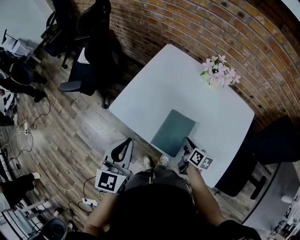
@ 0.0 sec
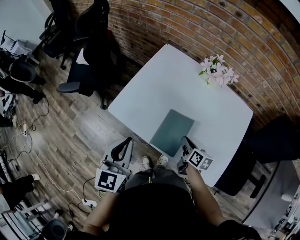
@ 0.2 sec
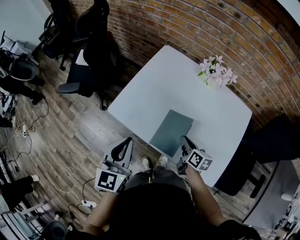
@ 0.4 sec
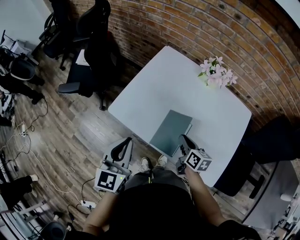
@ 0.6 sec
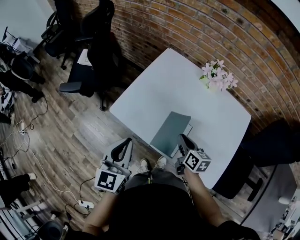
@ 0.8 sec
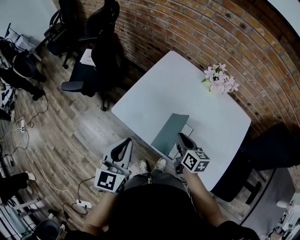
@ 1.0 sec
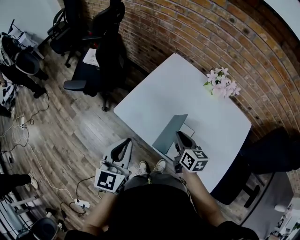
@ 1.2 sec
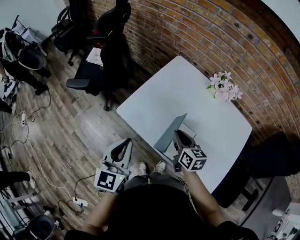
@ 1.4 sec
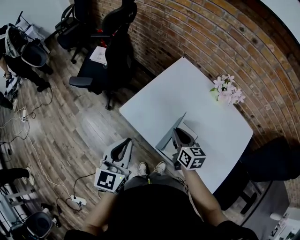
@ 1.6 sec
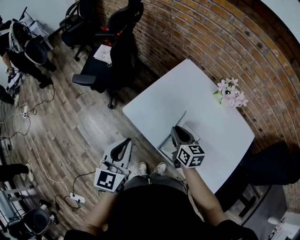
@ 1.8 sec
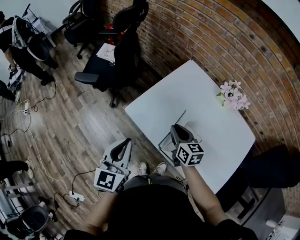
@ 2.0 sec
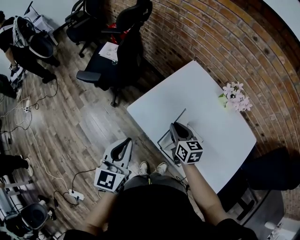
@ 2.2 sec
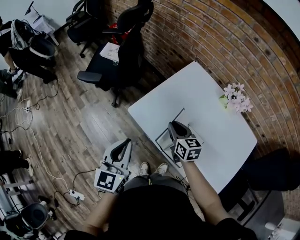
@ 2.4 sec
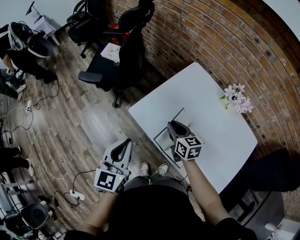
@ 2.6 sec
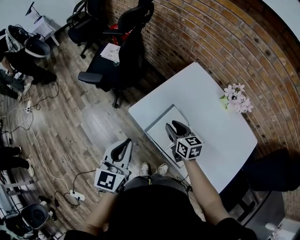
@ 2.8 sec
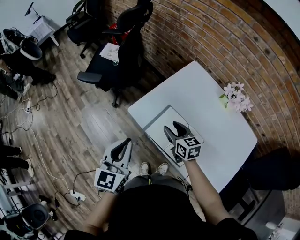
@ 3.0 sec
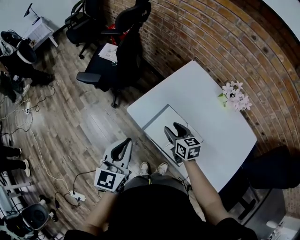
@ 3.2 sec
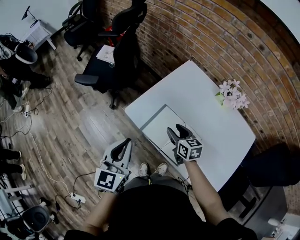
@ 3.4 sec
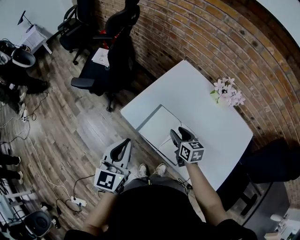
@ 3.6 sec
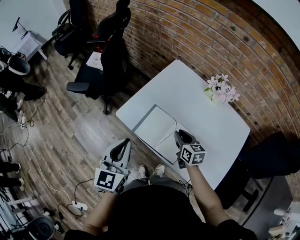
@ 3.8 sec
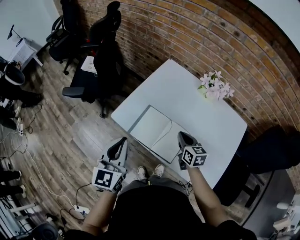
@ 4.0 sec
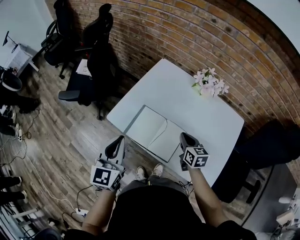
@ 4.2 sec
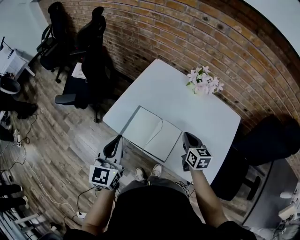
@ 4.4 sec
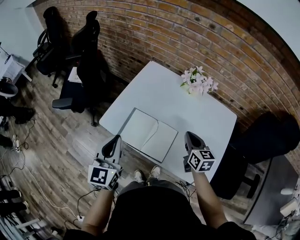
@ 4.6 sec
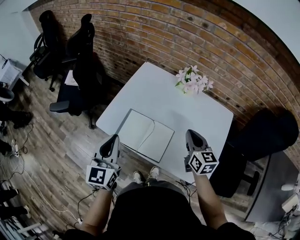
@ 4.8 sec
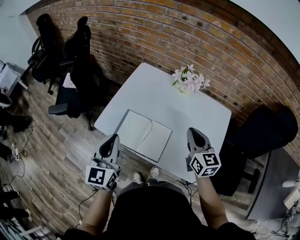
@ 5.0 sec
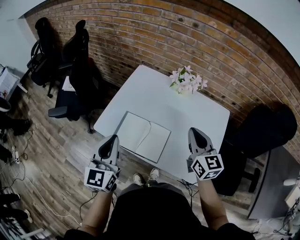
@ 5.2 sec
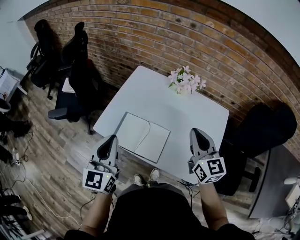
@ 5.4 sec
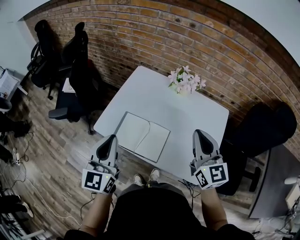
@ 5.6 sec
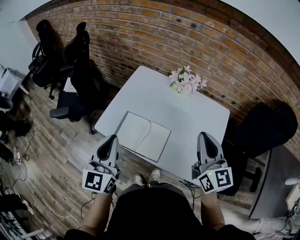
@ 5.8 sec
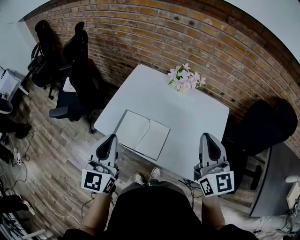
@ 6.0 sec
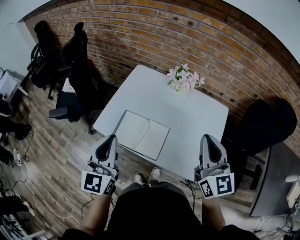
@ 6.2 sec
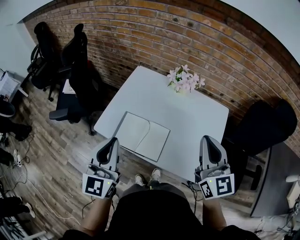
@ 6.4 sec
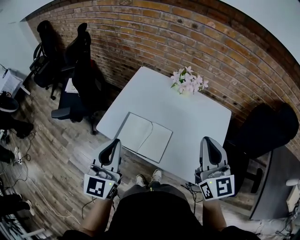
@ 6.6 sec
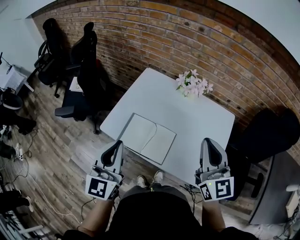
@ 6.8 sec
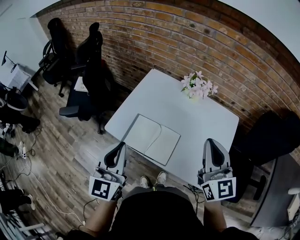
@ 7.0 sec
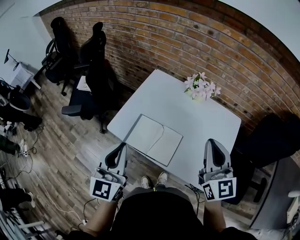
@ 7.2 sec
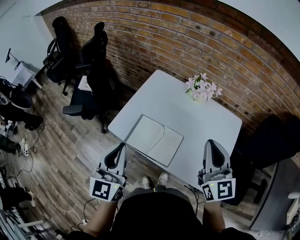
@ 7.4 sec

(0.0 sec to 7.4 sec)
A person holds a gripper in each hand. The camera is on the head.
0.0 sec - 1.4 sec: The right gripper shifts about 15 cm upward, to the left and forward, and changes its angle by some 30 degrees.
1.4 sec - 3.0 sec: The right gripper shifts some 10 cm to the left and forward, rotates about 20 degrees, and opens; the left gripper shifts approximately 5 cm to the left.
3.0 sec - 4.4 sec: The left gripper goes approximately 10 cm to the right. The right gripper moves to the right, some 20 cm, rotates roughly 30 degrees, and closes.
4.4 sec - 6.0 sec: The right gripper goes some 25 cm upward, and tilts its fingers some 30 degrees upward. Meanwhile the left gripper is displaced upward and to the right by some 10 cm.
6.0 sec - 7.4 sec: There are only small adjustments of the grippers.

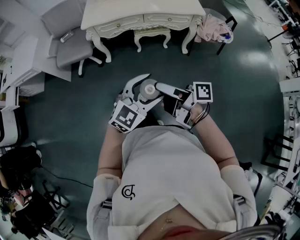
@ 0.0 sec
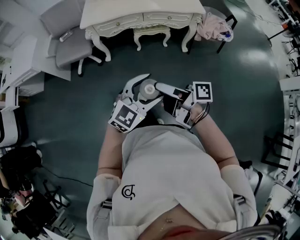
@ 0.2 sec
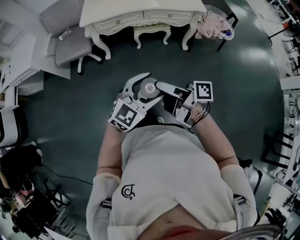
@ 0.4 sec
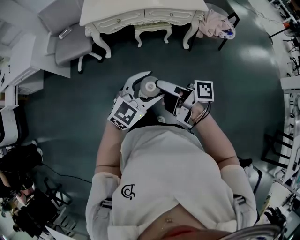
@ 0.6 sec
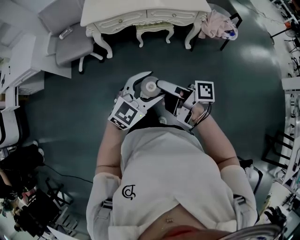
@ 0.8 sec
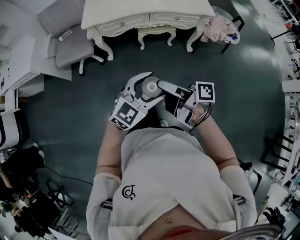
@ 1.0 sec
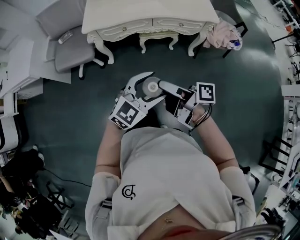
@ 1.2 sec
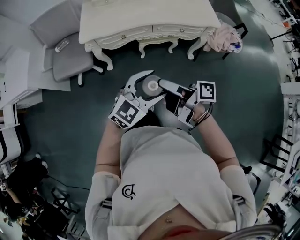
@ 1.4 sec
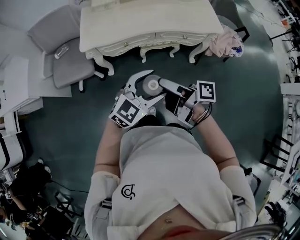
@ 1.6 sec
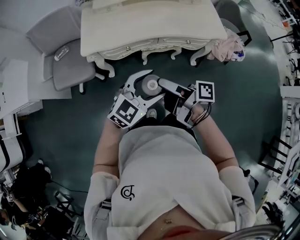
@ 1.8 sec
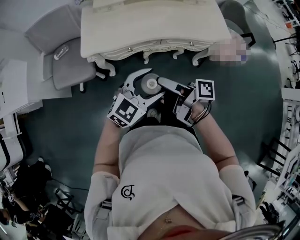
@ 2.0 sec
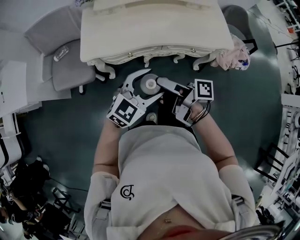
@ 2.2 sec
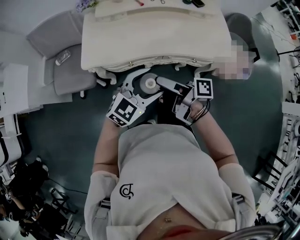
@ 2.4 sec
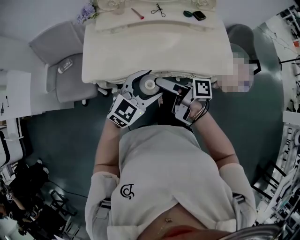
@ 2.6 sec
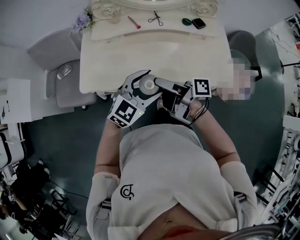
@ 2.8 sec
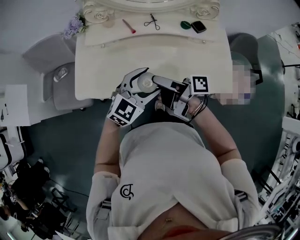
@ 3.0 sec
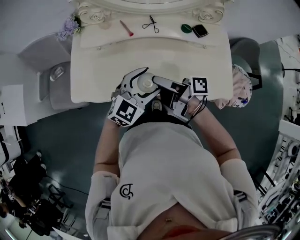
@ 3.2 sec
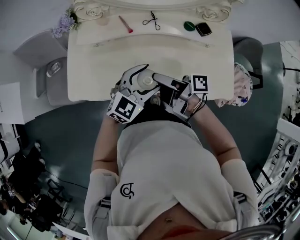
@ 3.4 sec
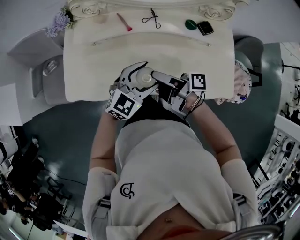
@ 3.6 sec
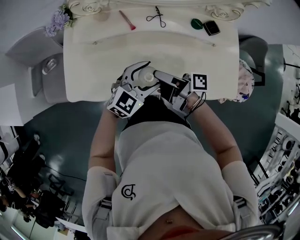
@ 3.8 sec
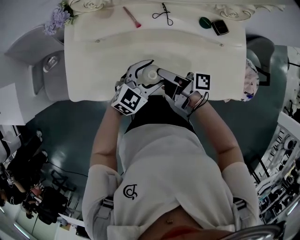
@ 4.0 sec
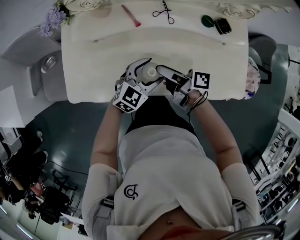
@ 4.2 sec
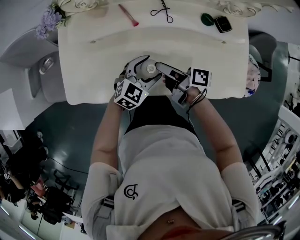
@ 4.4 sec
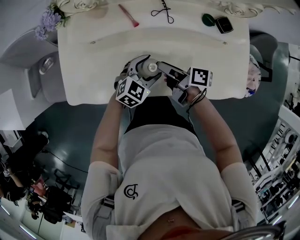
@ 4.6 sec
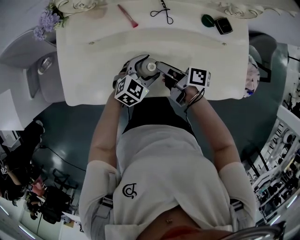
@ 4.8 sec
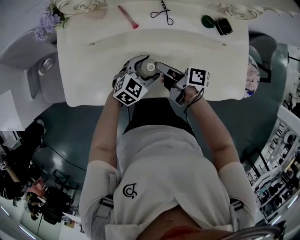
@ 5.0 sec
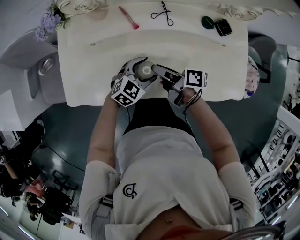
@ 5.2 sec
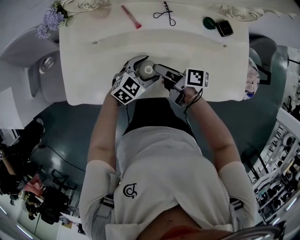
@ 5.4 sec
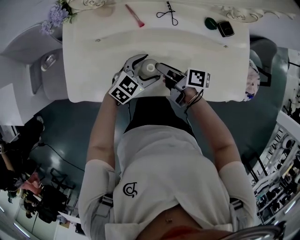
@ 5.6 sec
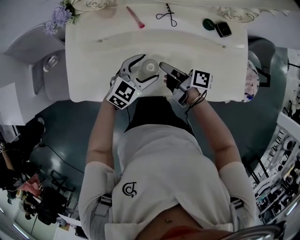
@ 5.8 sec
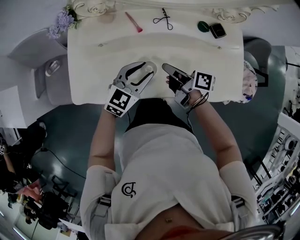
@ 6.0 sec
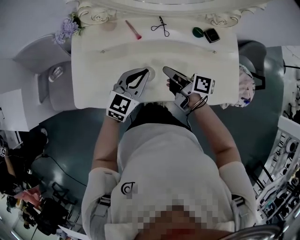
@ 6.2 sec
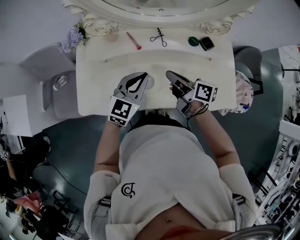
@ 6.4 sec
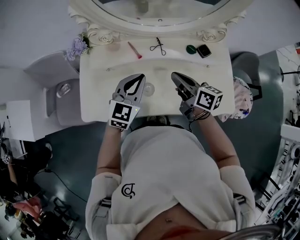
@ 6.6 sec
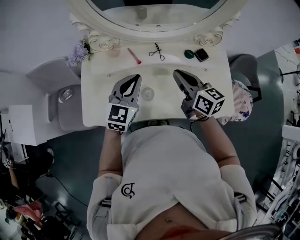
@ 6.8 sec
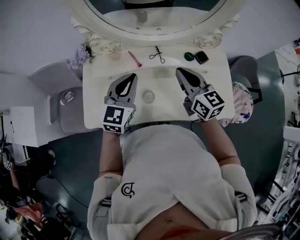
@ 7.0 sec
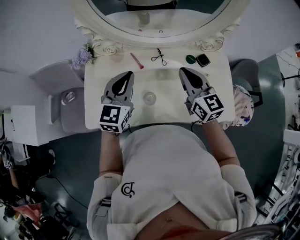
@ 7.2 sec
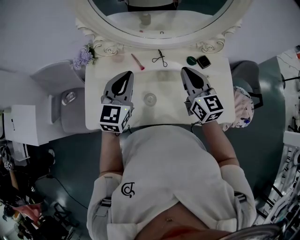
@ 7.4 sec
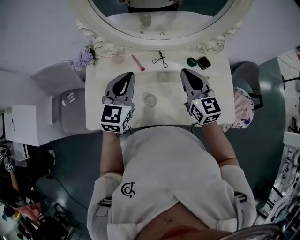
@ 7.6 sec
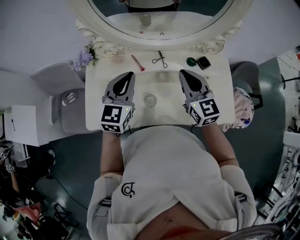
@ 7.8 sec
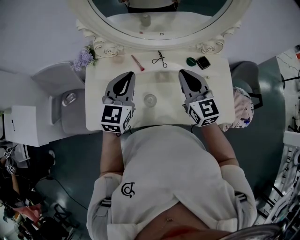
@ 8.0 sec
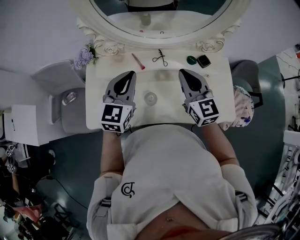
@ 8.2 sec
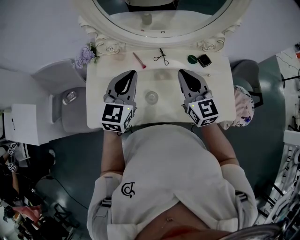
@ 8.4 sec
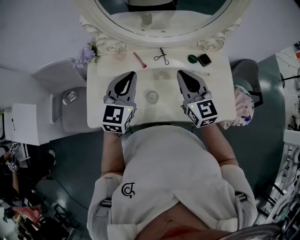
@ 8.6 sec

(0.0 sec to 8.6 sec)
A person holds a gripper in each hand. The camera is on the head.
0.0 sec - 1.4 sec: The left gripper moves some 20 cm.
1.4 sec - 2.8 sec: The left gripper shifts by roughly 40 cm.
2.8 sec - 4.4 sec: The left gripper travels downward by about 20 cm.
5.8 sec - 7.2 sec: The left gripper goes roughly 25 cm upward, turns by about 30 degrees, and closes its fingers.

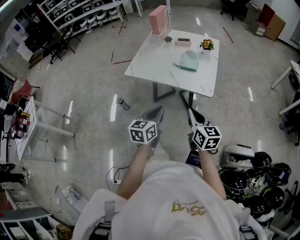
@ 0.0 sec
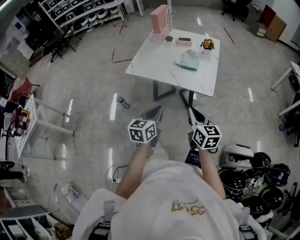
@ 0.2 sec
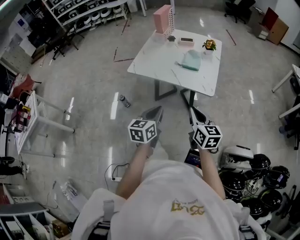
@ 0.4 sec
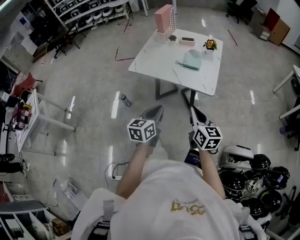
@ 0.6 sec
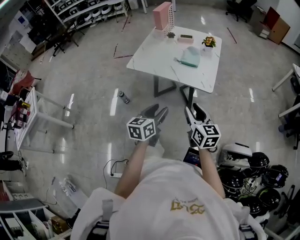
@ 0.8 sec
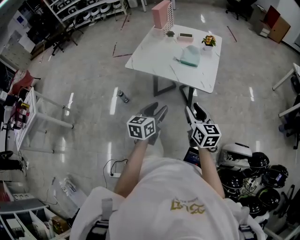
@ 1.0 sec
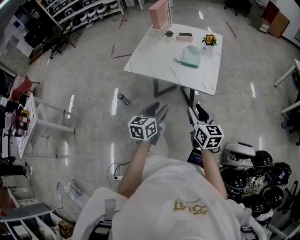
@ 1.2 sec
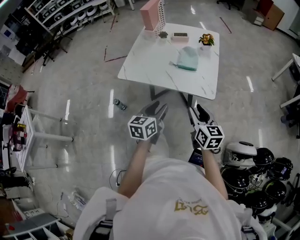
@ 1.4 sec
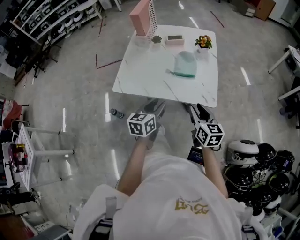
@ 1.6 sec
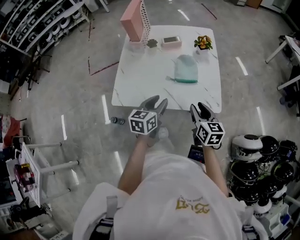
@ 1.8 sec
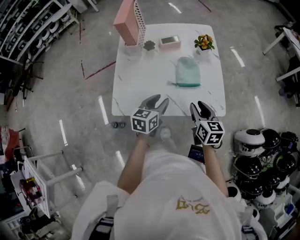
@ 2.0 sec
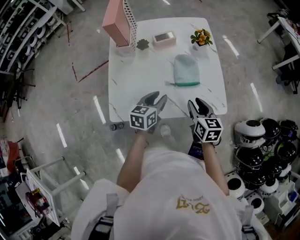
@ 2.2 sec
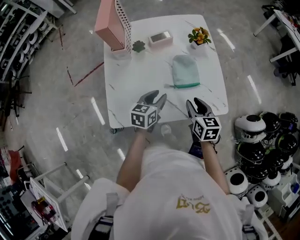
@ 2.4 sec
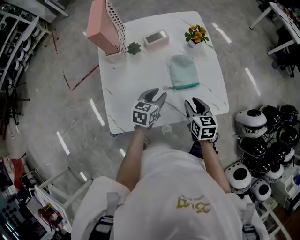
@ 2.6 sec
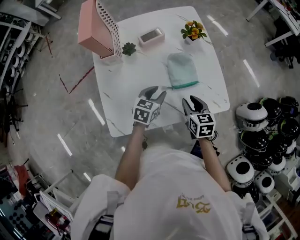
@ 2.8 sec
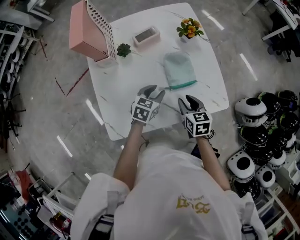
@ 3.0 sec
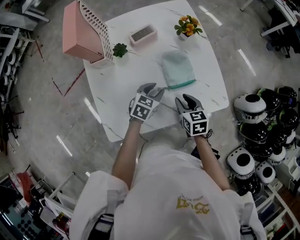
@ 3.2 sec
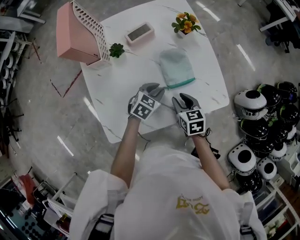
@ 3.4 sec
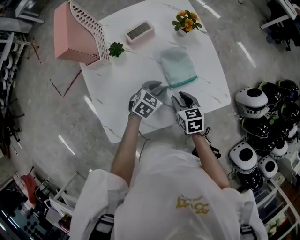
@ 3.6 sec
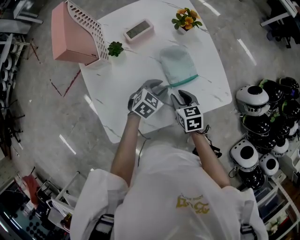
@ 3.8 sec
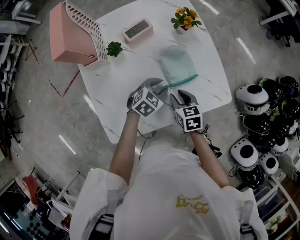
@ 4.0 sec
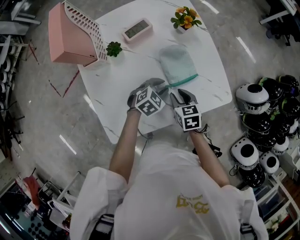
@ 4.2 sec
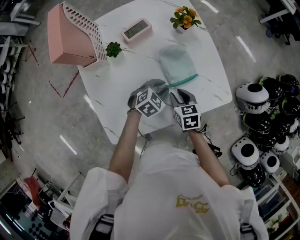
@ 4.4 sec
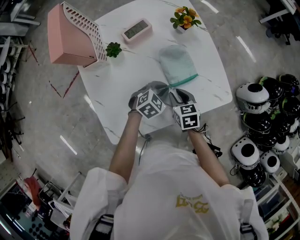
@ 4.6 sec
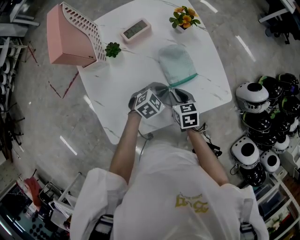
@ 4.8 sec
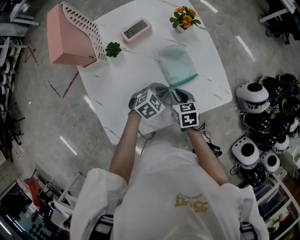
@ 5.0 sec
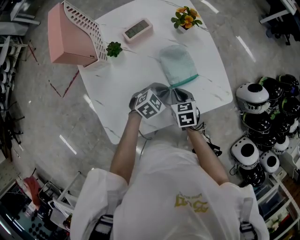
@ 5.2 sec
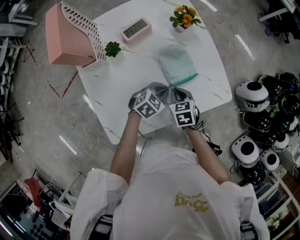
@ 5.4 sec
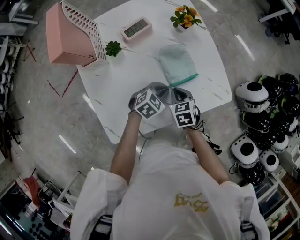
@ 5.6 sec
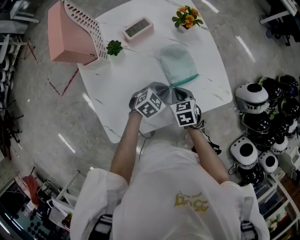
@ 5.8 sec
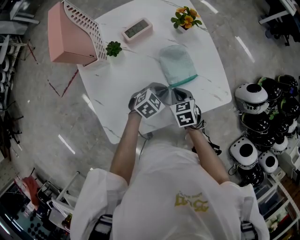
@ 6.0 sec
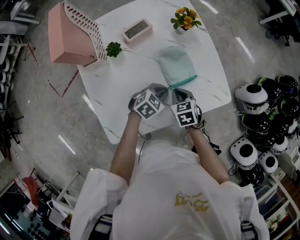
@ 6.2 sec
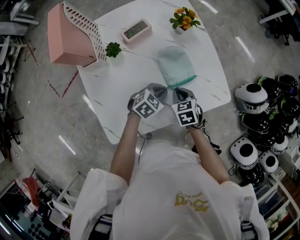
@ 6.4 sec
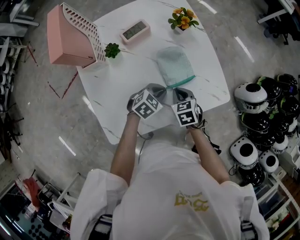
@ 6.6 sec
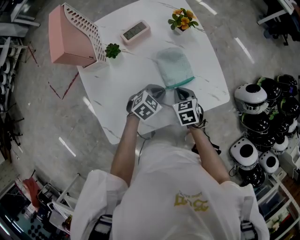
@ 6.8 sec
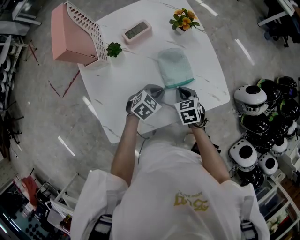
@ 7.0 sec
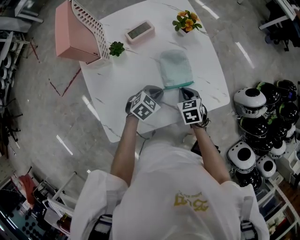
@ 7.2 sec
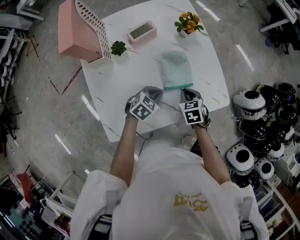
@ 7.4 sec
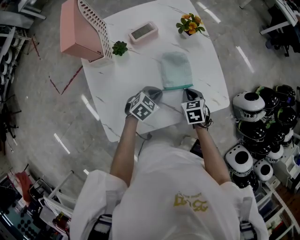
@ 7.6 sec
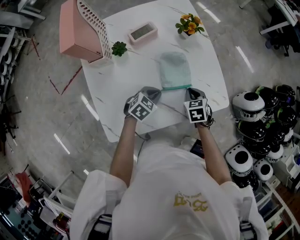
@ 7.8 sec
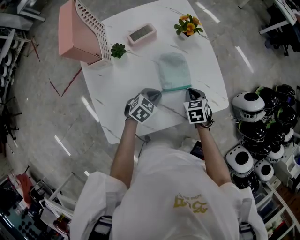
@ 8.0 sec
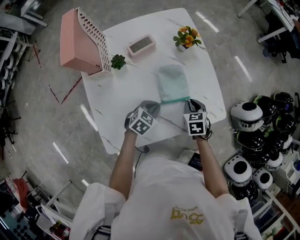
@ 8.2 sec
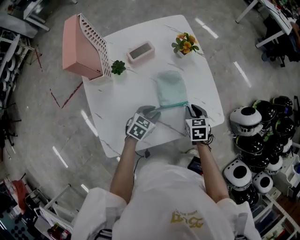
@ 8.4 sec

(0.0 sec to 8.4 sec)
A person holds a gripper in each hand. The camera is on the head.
0.0 sec - 1.4 sec: Both grippers move forward, about 10 cm. The right gripper opens; the left gripper opens up.
1.4 sec - 2.8 sec: The left gripper changes place by about 40 cm, and changes its angle by approximately 40 degrees, while the right gripper shifts by approximately 30 cm, and rotates about 30 degrees.
2.8 sec - 4.2 sec: The two grippers go approximately 5 cm downward. The left gripper rotates roughly 40 degrees.
4.2 sec - 5.6 sec: The left gripper closes. The right gripper closes up.
5.6 sec - 7.0 sec: The grippers move only a little.
7.0 sec - 8.4 sec: The left gripper opens up. The right gripper shifts roughly 5 cm to the right.
